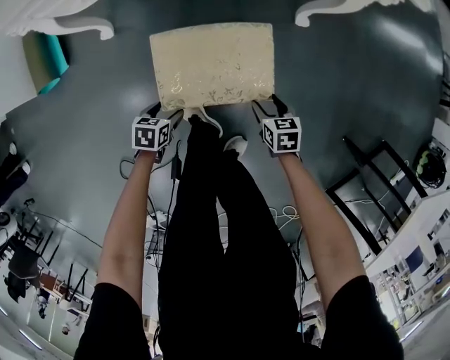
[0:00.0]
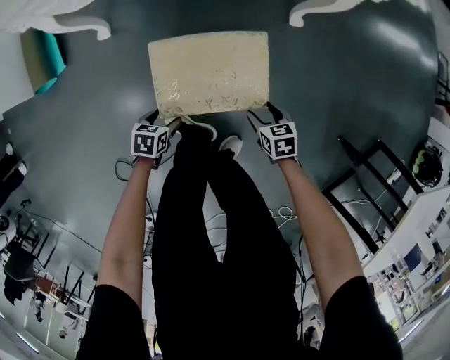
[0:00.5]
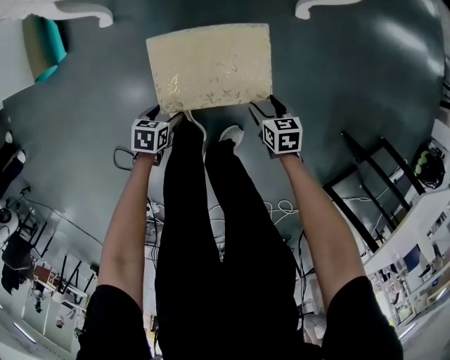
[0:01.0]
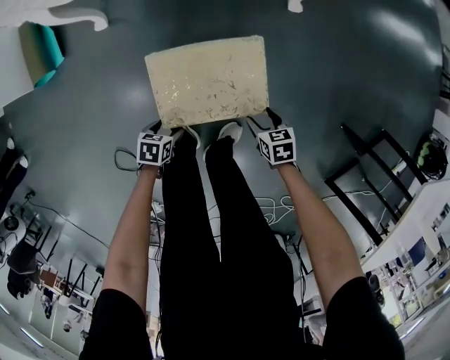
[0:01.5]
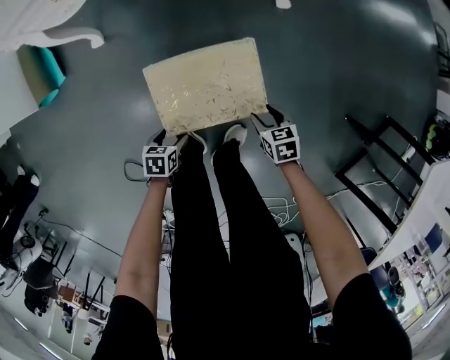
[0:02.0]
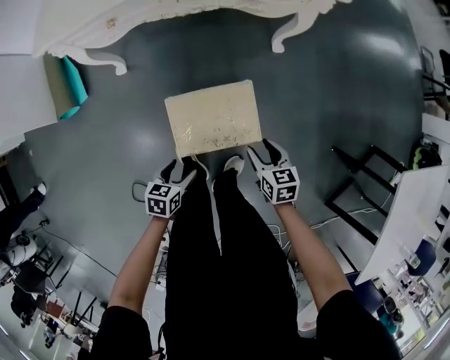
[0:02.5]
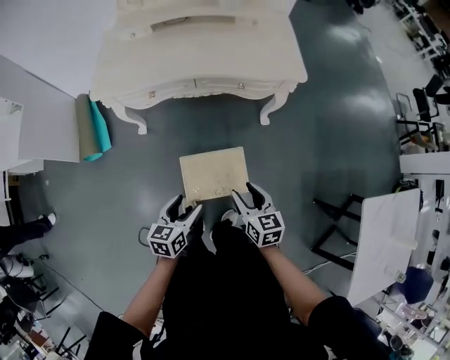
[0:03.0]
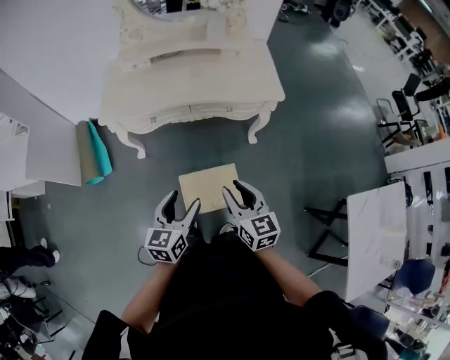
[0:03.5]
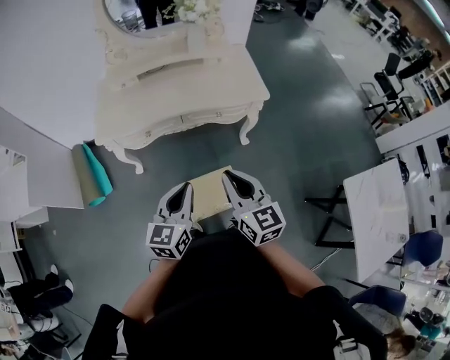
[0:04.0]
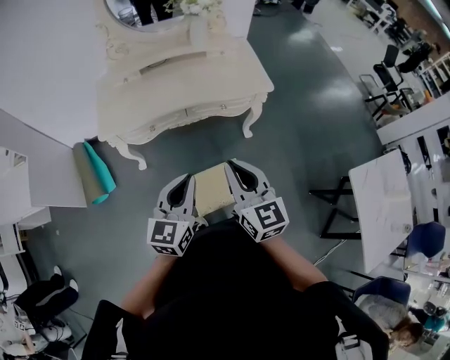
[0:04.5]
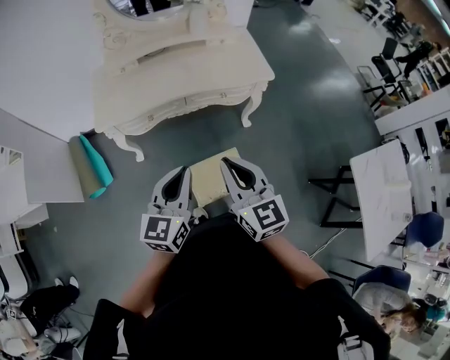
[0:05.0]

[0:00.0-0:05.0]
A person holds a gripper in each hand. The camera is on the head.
0:00.0 to 0:02.5: The grippers both shift upward and backward by about 20 cm.
0:02.5 to 0:05.0: Both grippers travel together upward, about 50 cm. The right gripper angles its fingers upward, by roughly 40 degrees, and closes up. The left gripper tips its fingers upward by about 40 degrees, and closes its fingers.

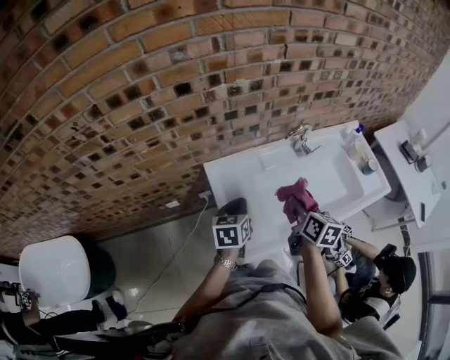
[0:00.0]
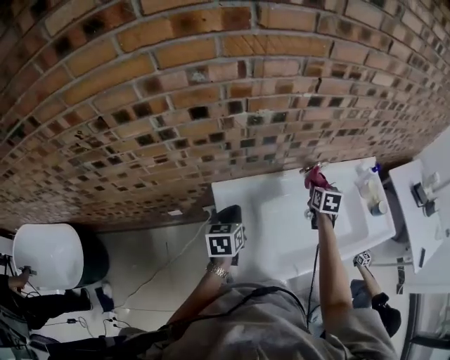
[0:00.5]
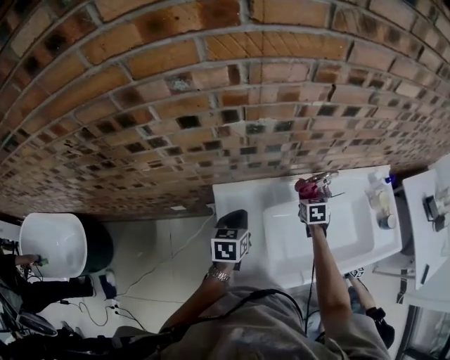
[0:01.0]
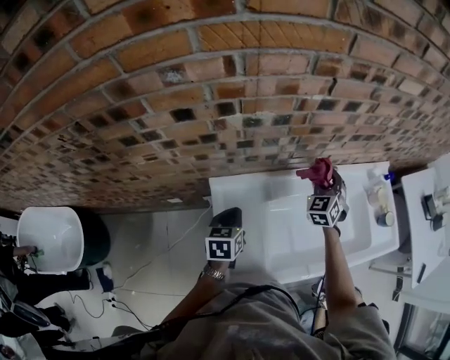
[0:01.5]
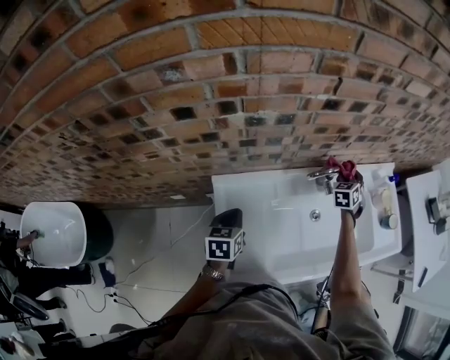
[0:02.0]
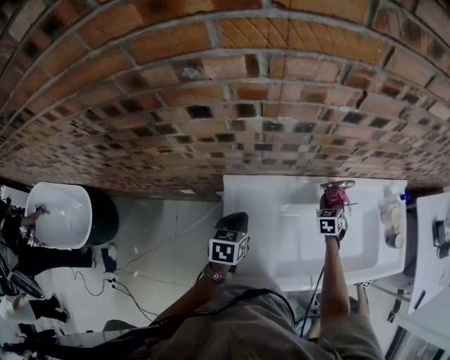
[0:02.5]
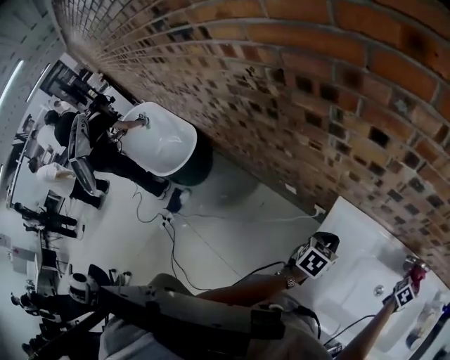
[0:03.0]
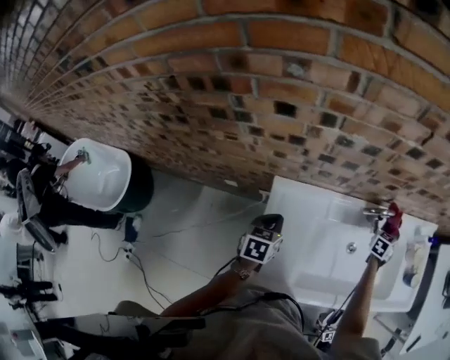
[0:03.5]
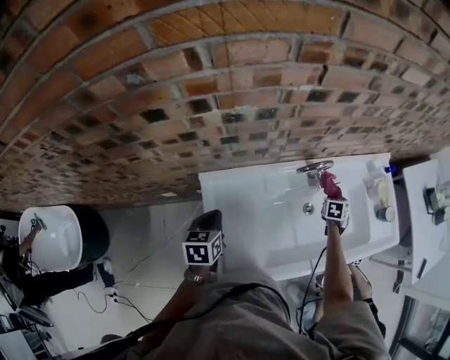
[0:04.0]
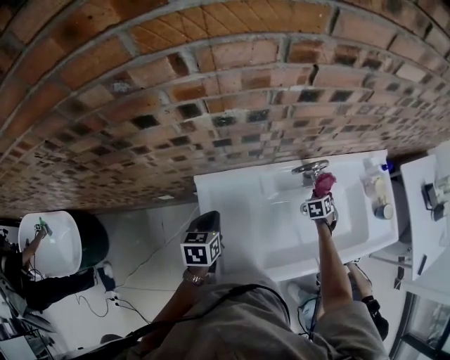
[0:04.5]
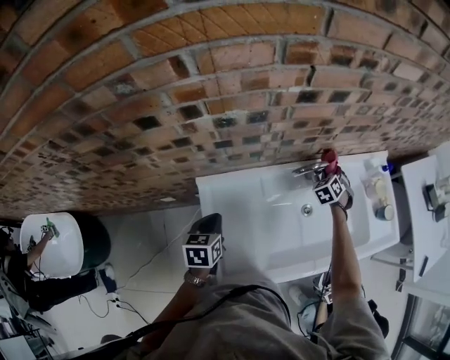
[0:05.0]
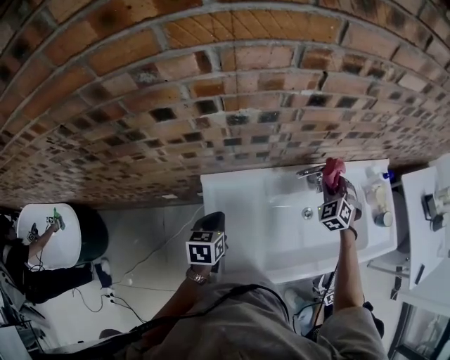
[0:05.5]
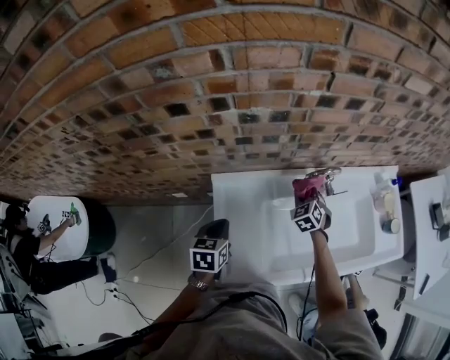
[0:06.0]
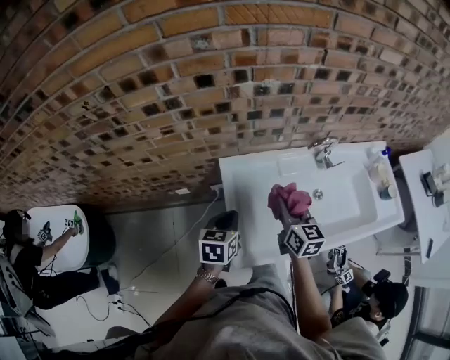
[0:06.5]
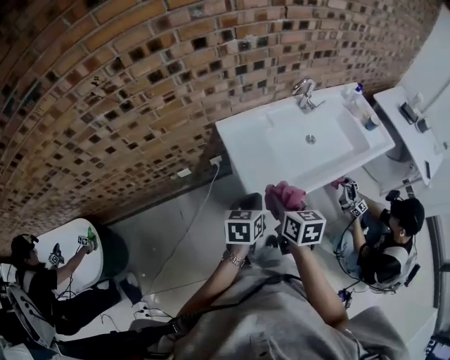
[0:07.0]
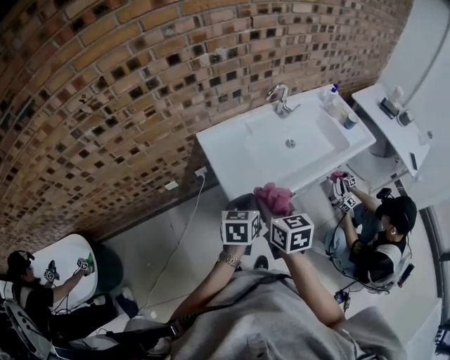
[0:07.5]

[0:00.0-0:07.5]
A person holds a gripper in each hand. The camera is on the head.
0:00.0 to 0:02.0: The right gripper goes approximately 40 cm forward and to the right, and rolls counterclockwise, seen from behind, by roughly 60 degrees. The left gripper goes approximately 10 cm forward.
0:02.0 to 0:04.0: The right gripper travels downward, backward and to the right by about 20 cm, and rotates roughly 30 degrees.
0:04.0 to 0:05.5: The right gripper moves upward and to the left, about 20 cm, and rolls counterclockwise, seen from behind, by some 50 degrees.
0:05.5 to 0:07.5: The right gripper is displaced backward and to the left by some 50 cm, and twists some 70 degrees clockwise, seen from behind. The left gripper heads backward, covering some 30 cm, and swivels about 20 degrees.

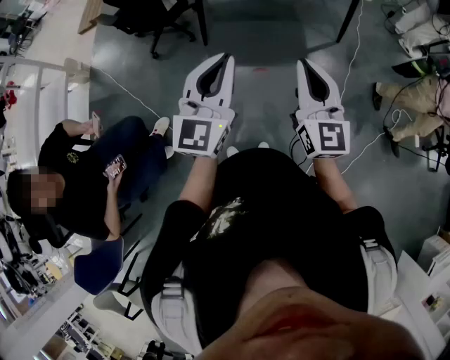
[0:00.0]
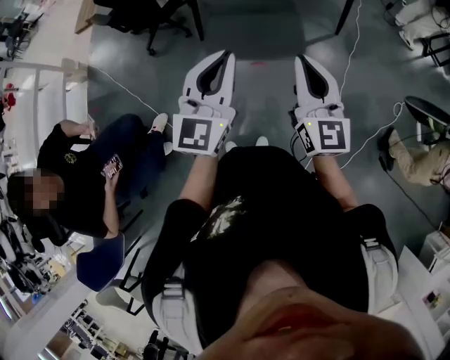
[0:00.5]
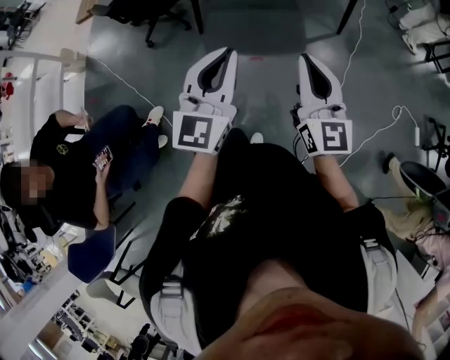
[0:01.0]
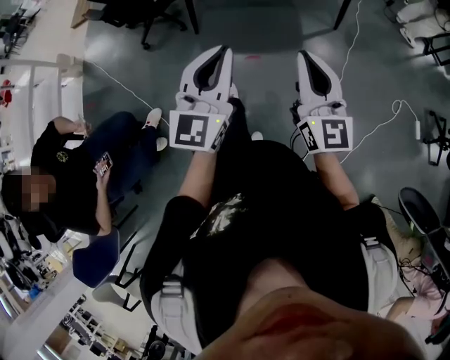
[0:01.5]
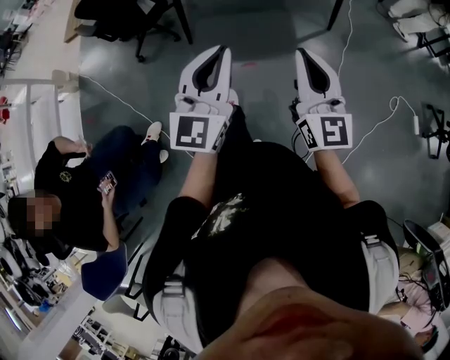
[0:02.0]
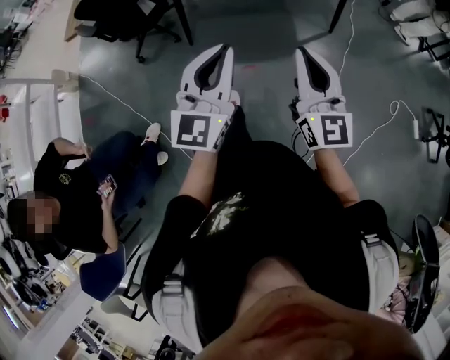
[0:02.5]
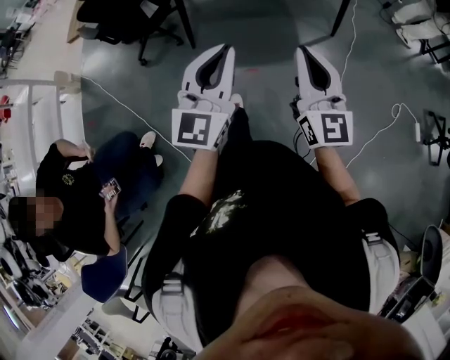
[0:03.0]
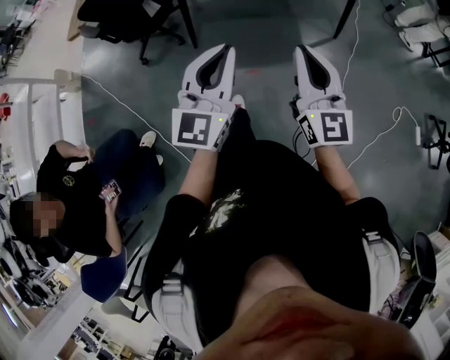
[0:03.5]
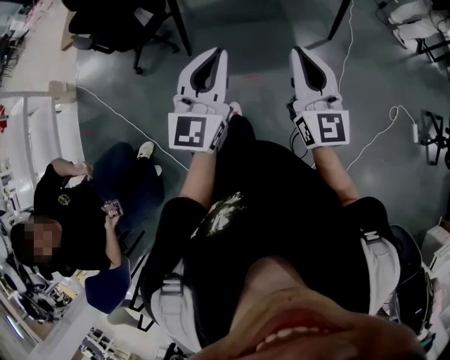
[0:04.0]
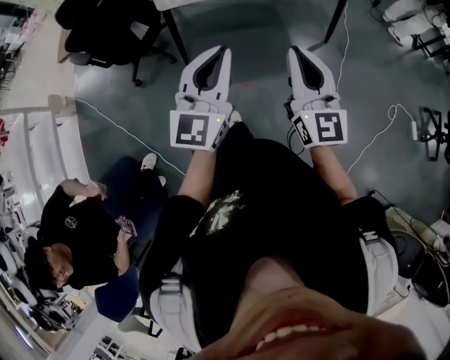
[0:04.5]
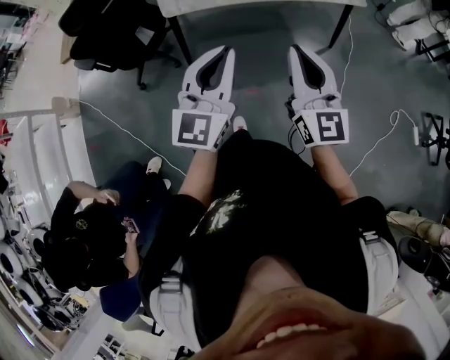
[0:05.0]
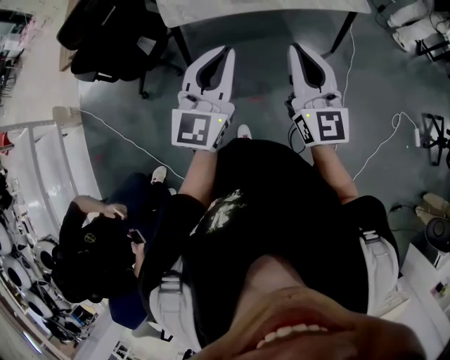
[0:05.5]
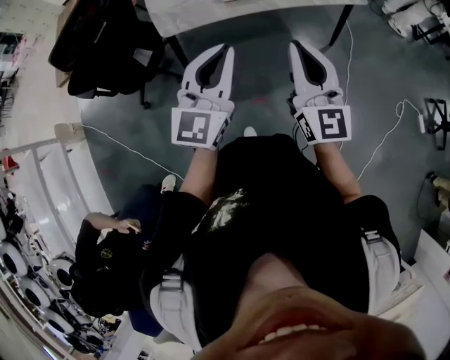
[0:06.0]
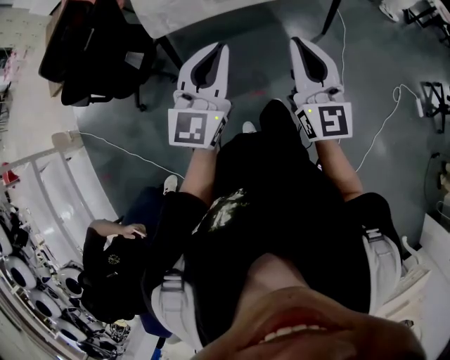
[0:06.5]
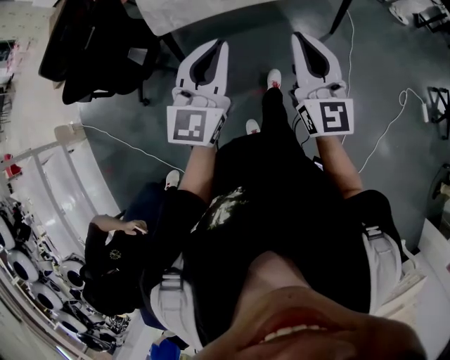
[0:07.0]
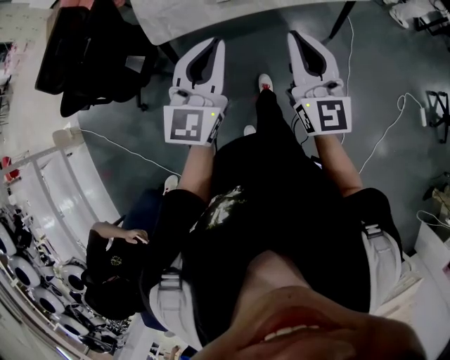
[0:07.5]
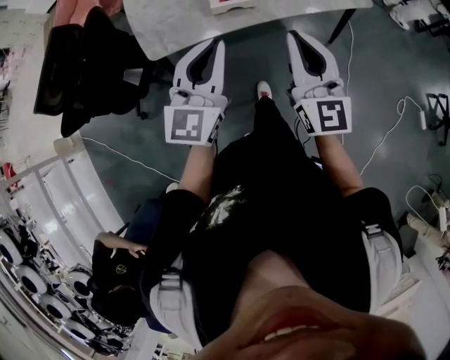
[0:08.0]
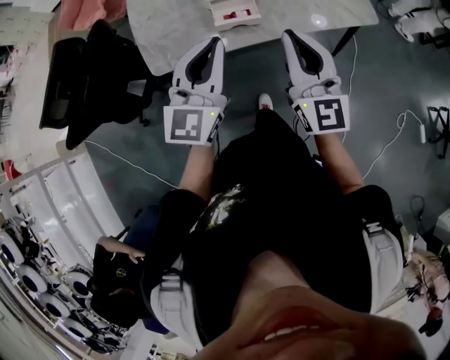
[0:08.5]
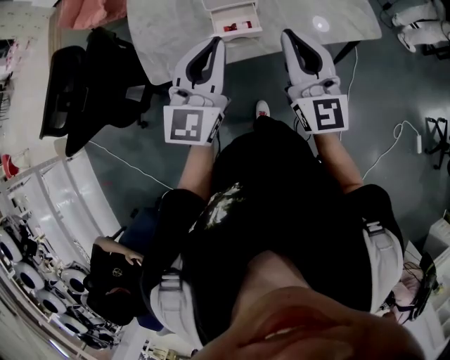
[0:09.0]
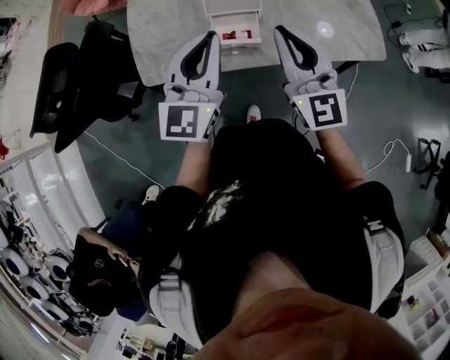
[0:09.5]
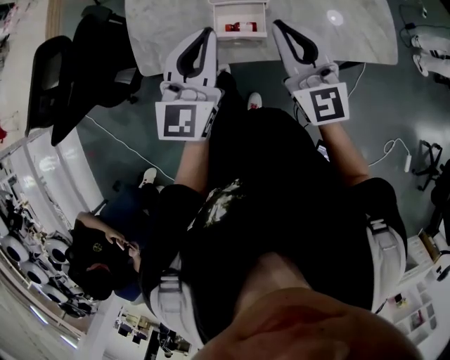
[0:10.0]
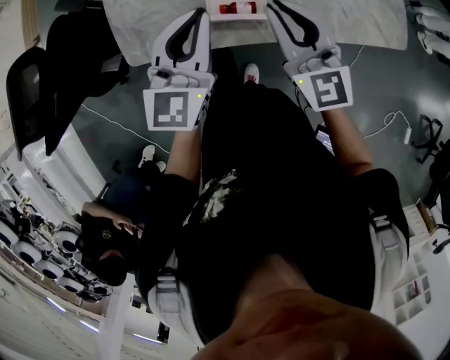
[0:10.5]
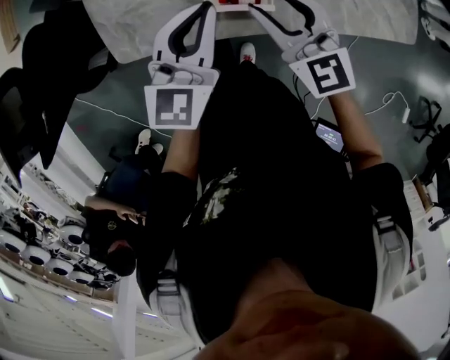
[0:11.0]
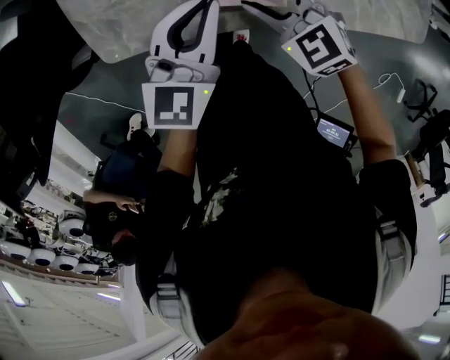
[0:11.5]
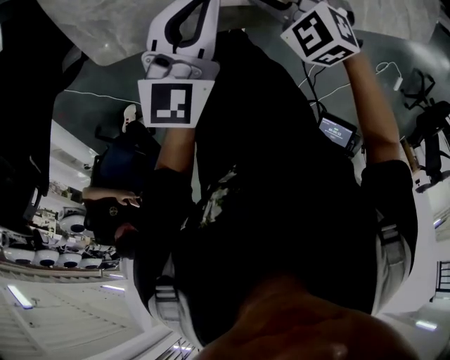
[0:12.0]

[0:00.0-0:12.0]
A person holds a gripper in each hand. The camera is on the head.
0:00.0 to 0:02.0: Both grippers move forward and to the right, approximately 10 cm.
0:02.0 to 0:04.0: The grippers both shift forward by about 10 cm.
0:04.0 to 0:06.0: Both grippers travel together forward, approximately 25 cm.
0:06.0 to 0:08.0: The two grippers go about 20 cm forward.
0:08.0 to 0:10.0: The grippers both shift forward by about 30 cm. The right gripper swivels approximately 20 degrees.
0:10.0 to 0:12.0: The grippers both shift downward and forward by about 35 cm. The right gripper tilts its fingers approximately 50 degrees downward, and opens its fingers. The left gripper turns by approximately 30 degrees.

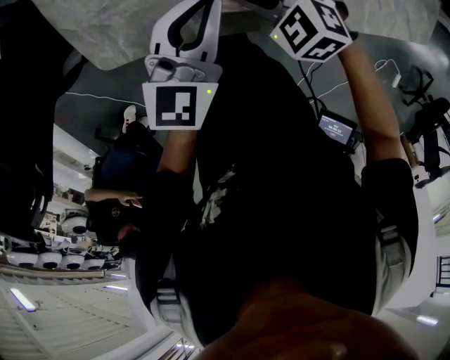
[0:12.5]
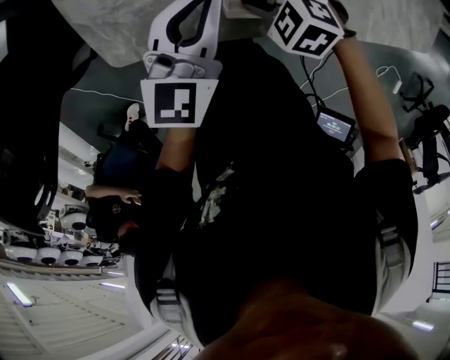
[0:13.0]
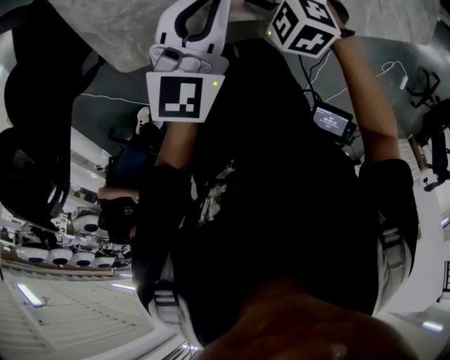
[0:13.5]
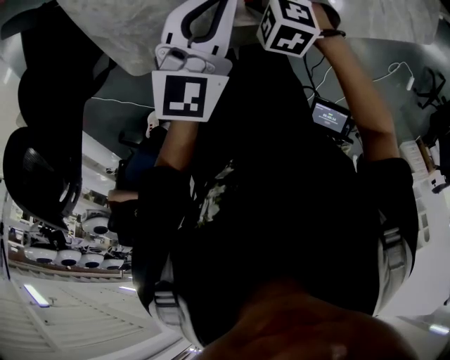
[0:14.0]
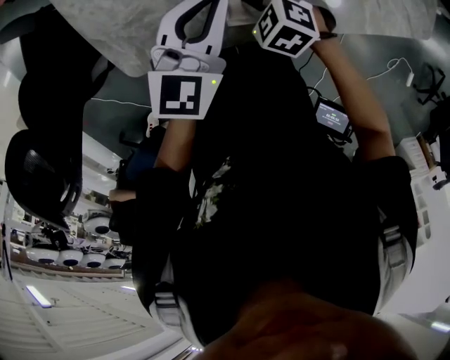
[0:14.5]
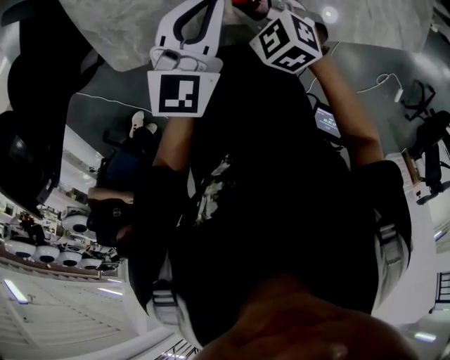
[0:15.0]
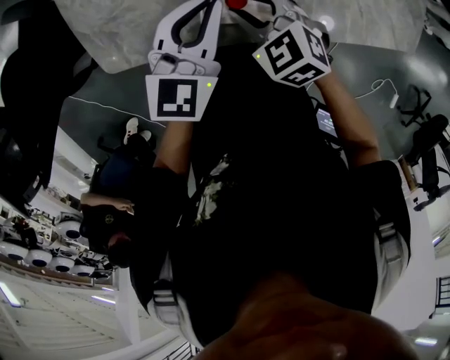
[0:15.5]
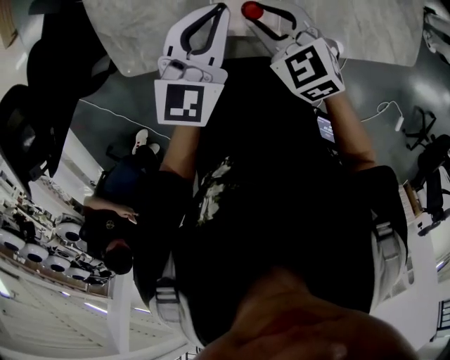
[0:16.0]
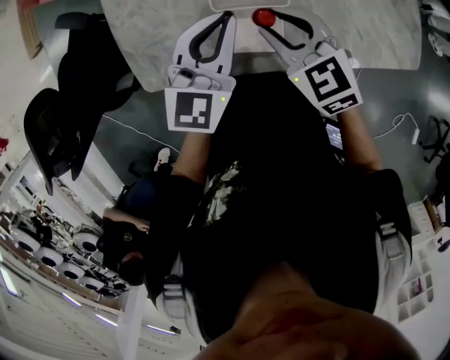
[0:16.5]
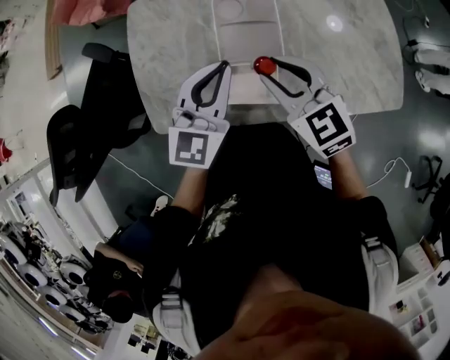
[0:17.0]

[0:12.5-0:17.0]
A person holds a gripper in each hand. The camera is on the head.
0:12.5 to 0:14.5: The left gripper is displaced forward by approximately 5 cm.
0:14.5 to 0:17.0: The right gripper heads upward, covering approximately 35 cm, and tilts its fingers roughly 40 degrees upward; the left gripper goes about 20 cm upward, and changes its angle by roughly 20 degrees.
